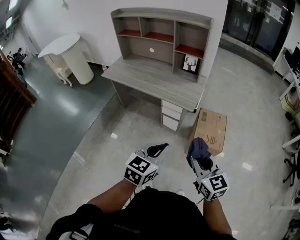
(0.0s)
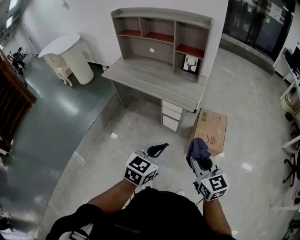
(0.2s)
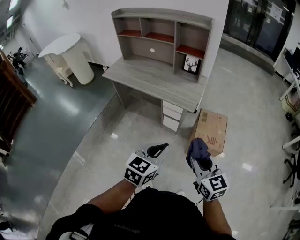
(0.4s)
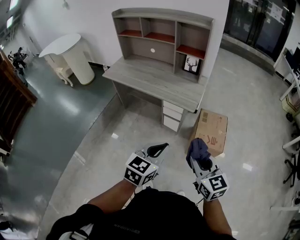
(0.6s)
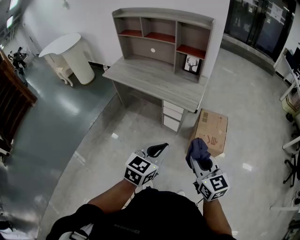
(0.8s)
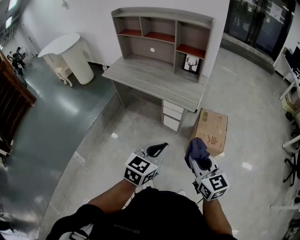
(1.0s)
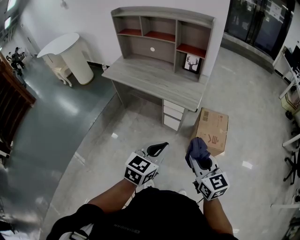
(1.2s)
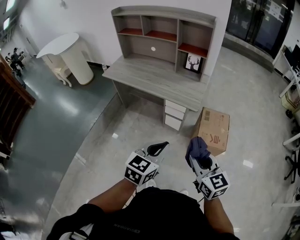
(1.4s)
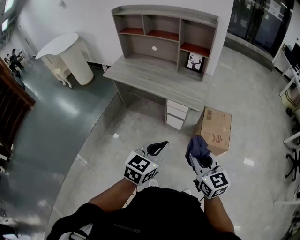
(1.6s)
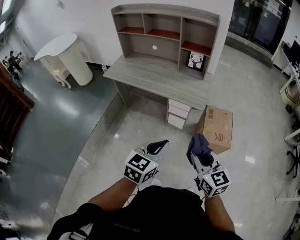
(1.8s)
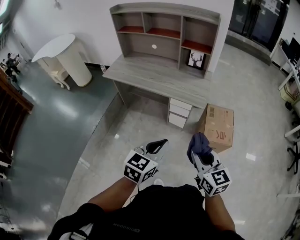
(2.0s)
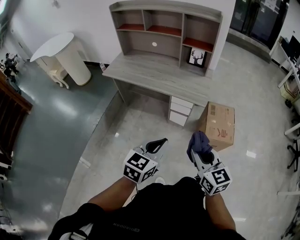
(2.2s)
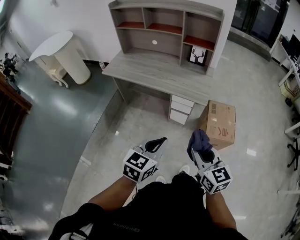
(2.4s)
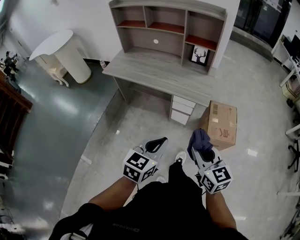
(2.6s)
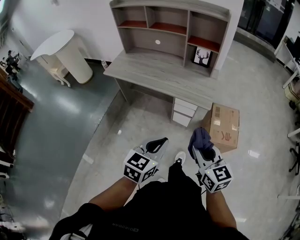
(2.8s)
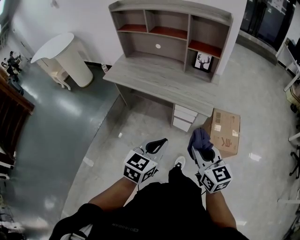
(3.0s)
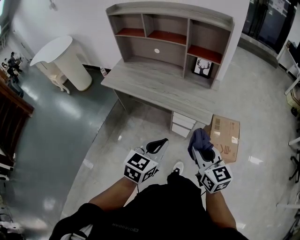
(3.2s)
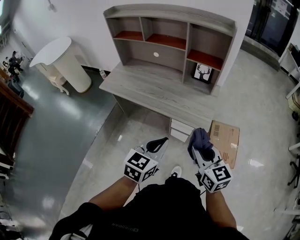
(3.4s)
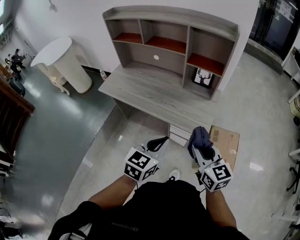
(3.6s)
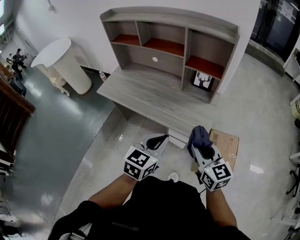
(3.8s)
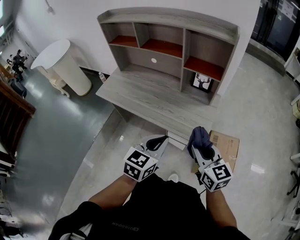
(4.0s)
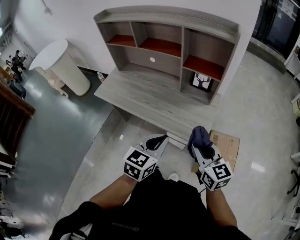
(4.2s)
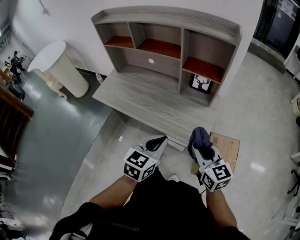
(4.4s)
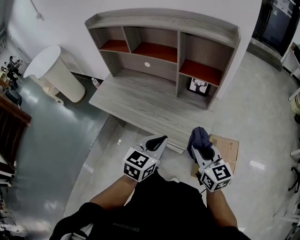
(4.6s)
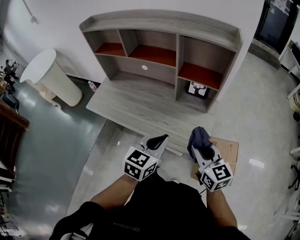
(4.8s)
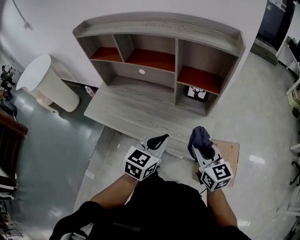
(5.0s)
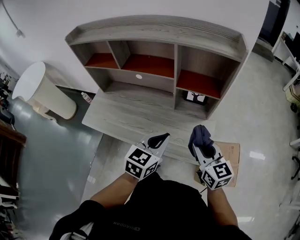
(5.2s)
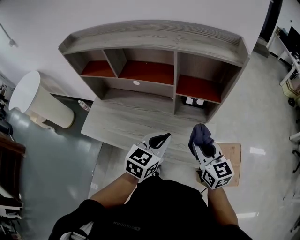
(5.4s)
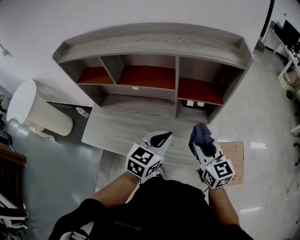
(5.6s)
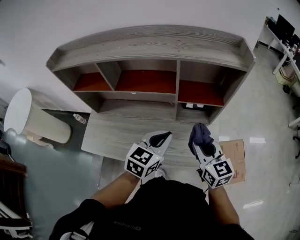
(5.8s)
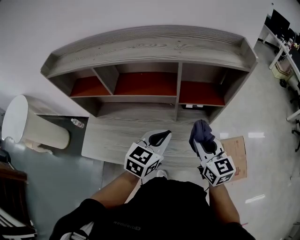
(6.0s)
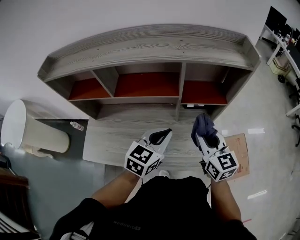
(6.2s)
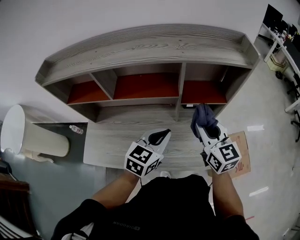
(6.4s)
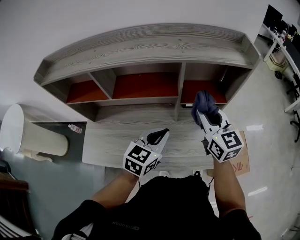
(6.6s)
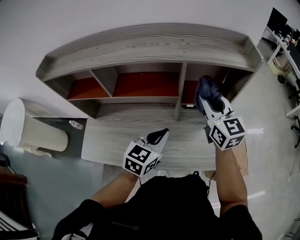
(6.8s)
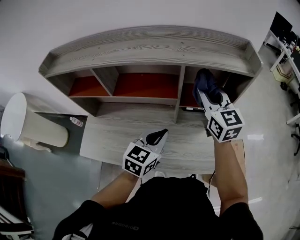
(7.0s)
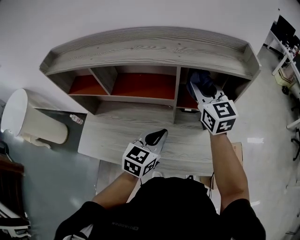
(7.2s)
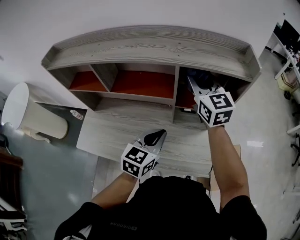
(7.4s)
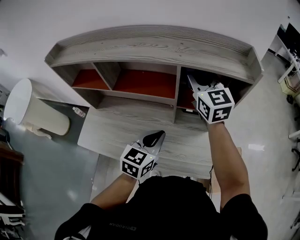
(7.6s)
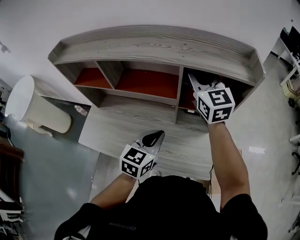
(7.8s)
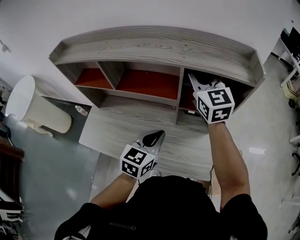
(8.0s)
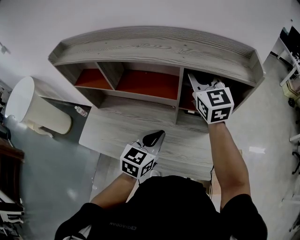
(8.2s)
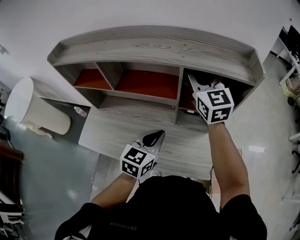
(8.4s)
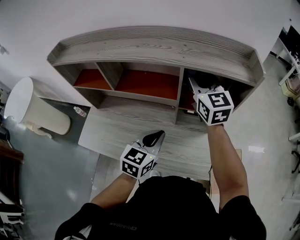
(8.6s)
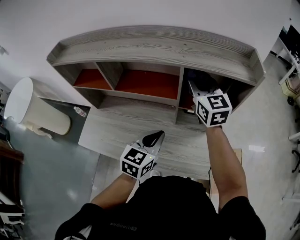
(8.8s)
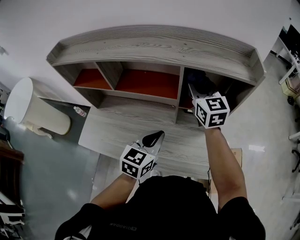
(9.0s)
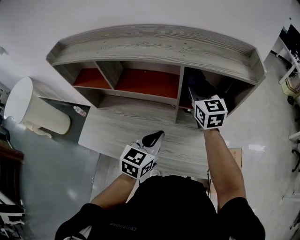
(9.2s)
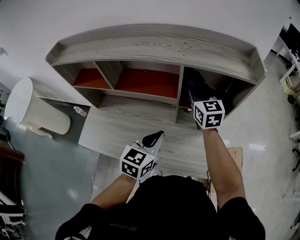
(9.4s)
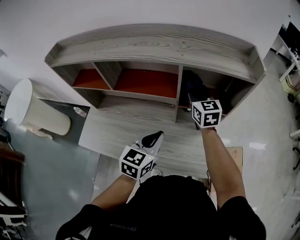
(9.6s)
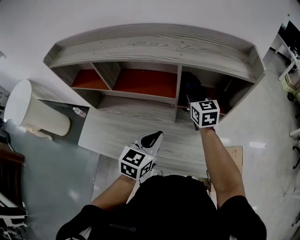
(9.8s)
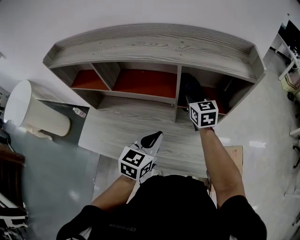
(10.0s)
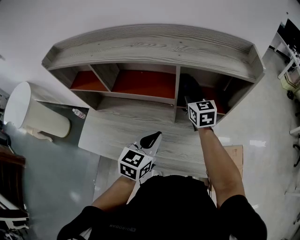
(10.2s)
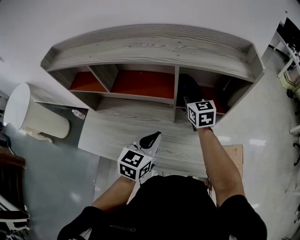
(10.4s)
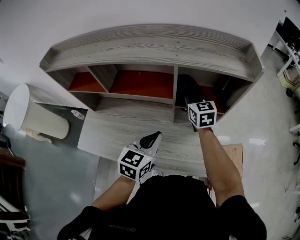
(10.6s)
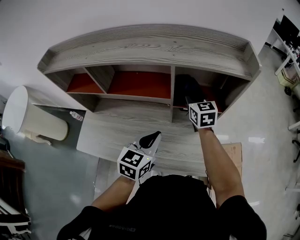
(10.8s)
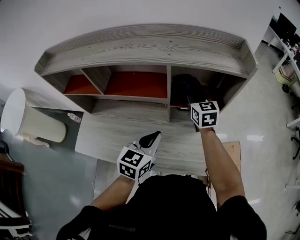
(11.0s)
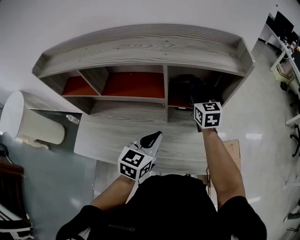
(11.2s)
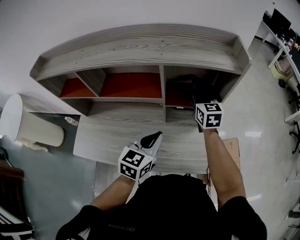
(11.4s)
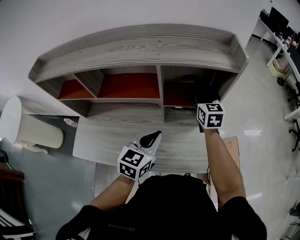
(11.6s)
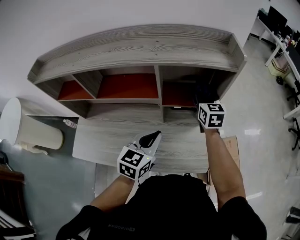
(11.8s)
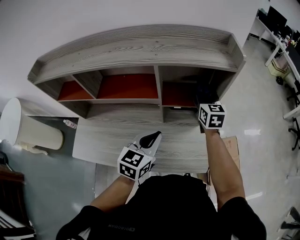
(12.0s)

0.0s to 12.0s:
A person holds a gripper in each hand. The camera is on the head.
0.0s to 1.6s: Both grippers travel together to the left, roughly 5 cm.
1.6s to 3.0s: Both grippers move forward and to the left, about 15 cm.
3.0s to 4.4s: Both grippers move forward, roughly 25 cm.
4.4s to 6.0s: The right gripper shifts about 25 cm forward and to the left, and rotates approximately 20 degrees. The left gripper is displaced forward by roughly 25 cm, and changes its angle by about 20 degrees.
6.0s to 7.6s: The right gripper shifts some 25 cm forward and upward, and changes its angle by approximately 20 degrees.
7.6s to 9.0s: There are only small adjustments of the grippers.
9.0s to 10.4s: The right gripper shifts about 10 cm downward.
10.4s to 12.0s: The right gripper is displaced to the right by approximately 15 cm.

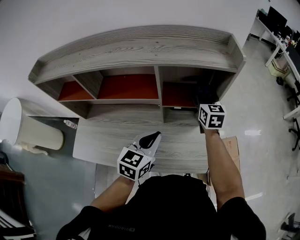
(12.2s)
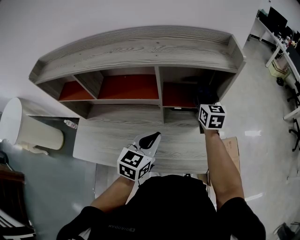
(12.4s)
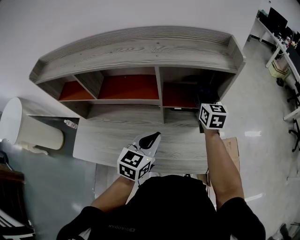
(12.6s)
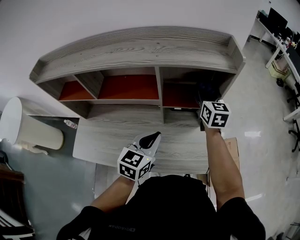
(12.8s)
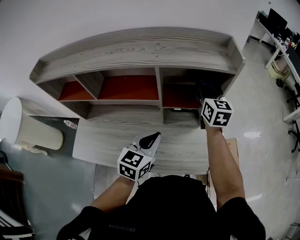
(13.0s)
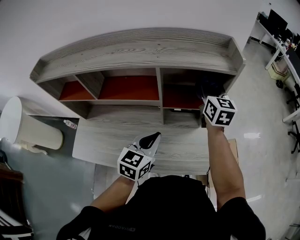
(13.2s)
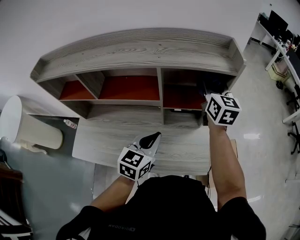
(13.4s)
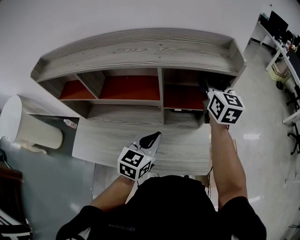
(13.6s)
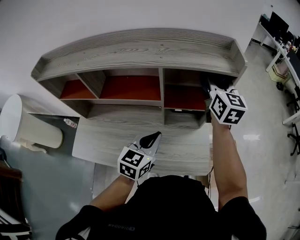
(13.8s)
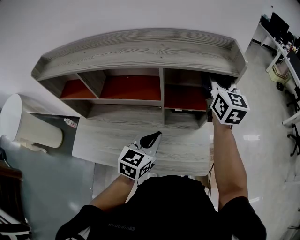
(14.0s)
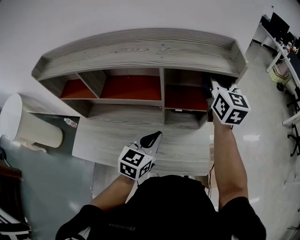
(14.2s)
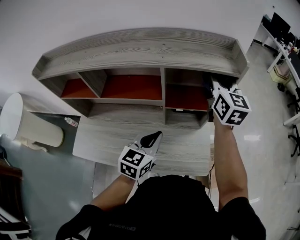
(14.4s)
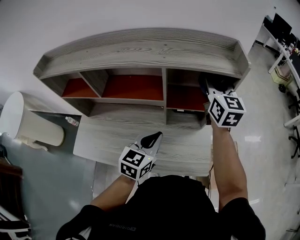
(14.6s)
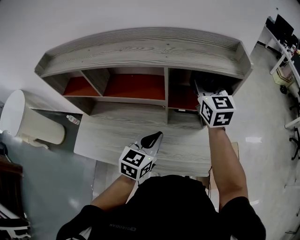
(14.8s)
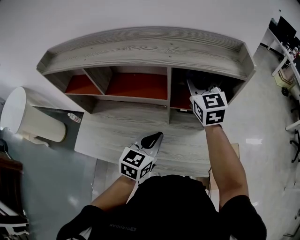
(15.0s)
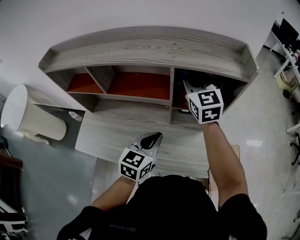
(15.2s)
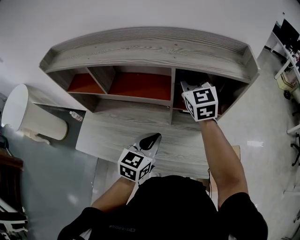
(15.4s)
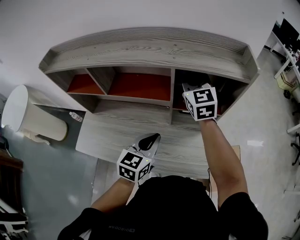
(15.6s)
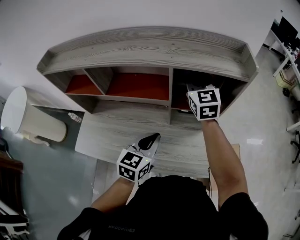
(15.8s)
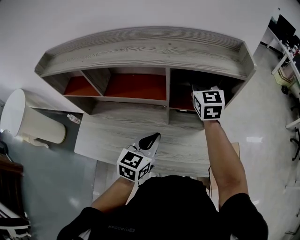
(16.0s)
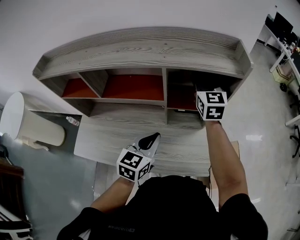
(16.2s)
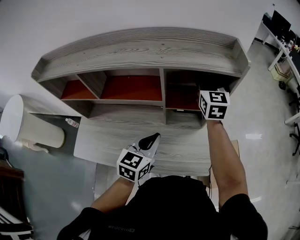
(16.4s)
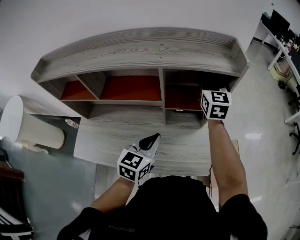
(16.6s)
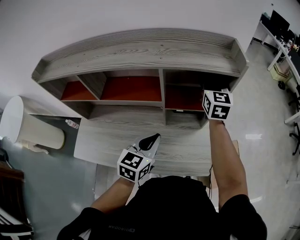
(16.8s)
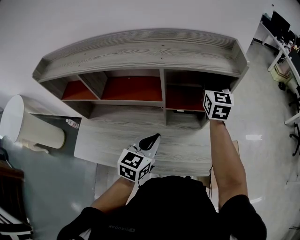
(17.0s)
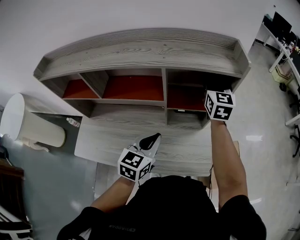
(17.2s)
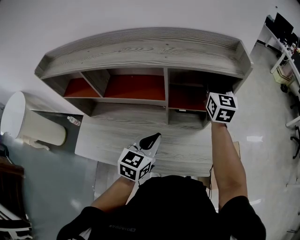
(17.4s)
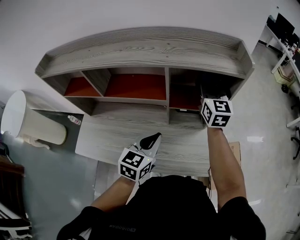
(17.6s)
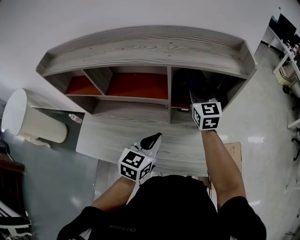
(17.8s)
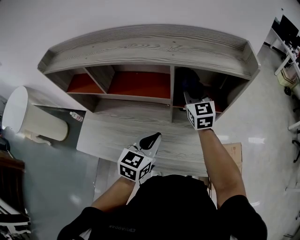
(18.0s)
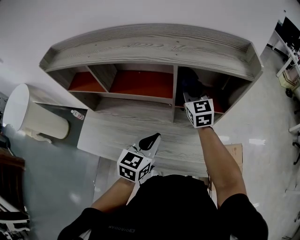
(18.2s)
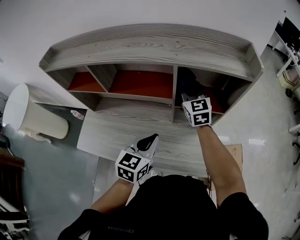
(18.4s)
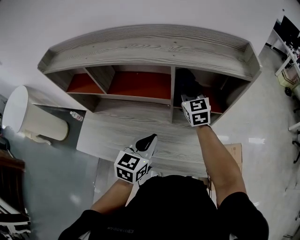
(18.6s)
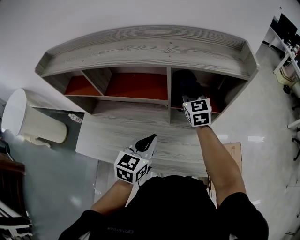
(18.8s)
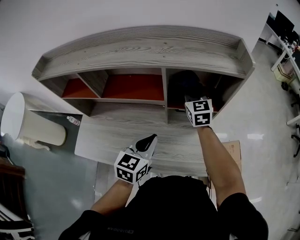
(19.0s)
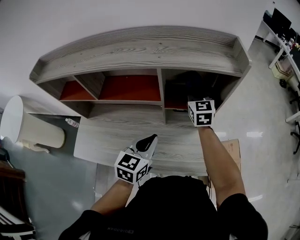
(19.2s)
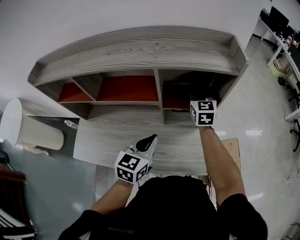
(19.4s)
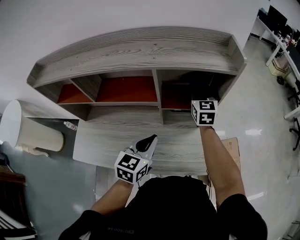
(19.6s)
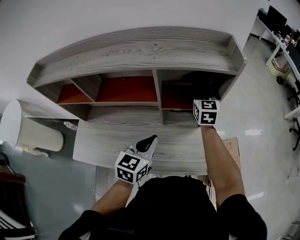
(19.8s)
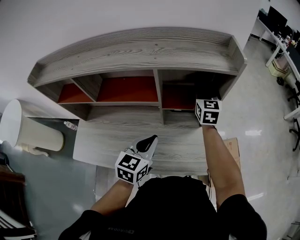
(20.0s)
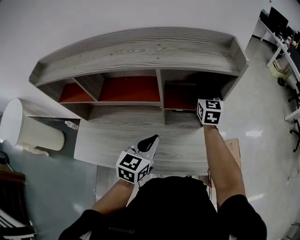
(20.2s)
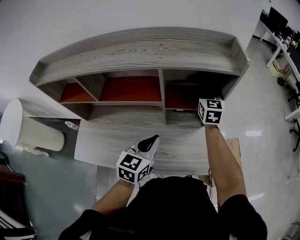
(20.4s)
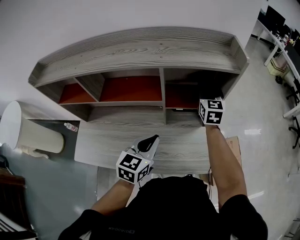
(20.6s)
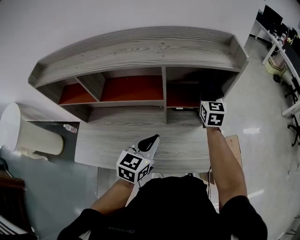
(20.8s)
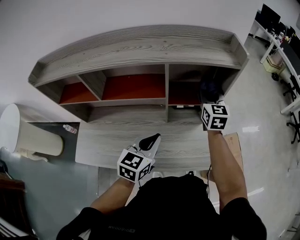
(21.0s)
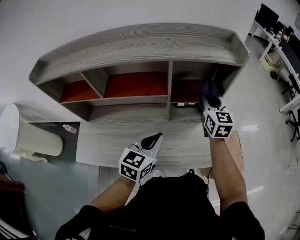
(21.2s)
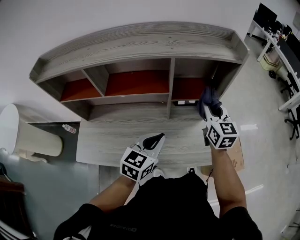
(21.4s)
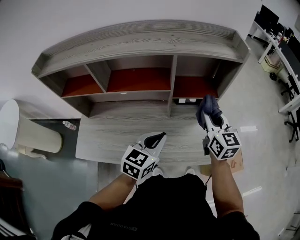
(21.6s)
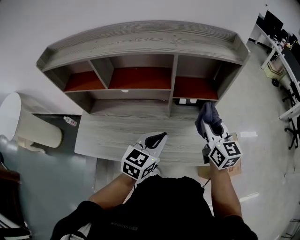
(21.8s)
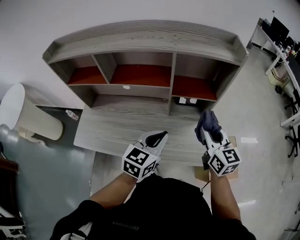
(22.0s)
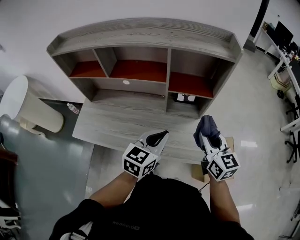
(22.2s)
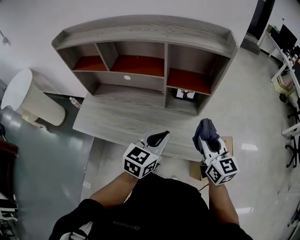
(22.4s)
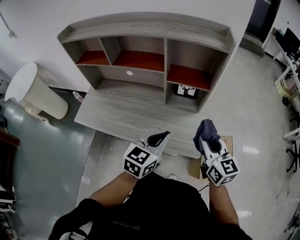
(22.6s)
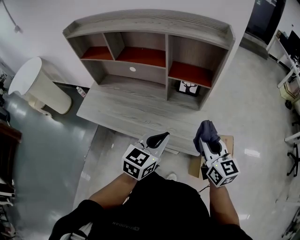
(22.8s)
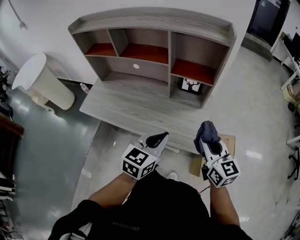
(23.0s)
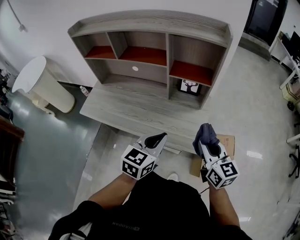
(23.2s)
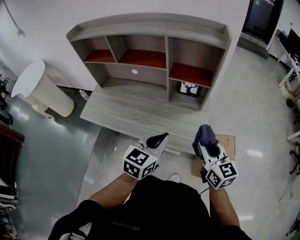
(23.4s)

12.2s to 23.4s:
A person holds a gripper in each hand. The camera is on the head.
12.2s to 13.8s: The right gripper goes approximately 15 cm upward.
13.8s to 15.4s: The right gripper heads to the left, covering roughly 15 cm, and turns by some 30 degrees.
15.4s to 17.0s: The right gripper heads to the right, covering some 15 cm, and rotates approximately 20 degrees.
17.0s to 18.6s: The right gripper travels to the left and downward by some 15 cm, and rotates about 20 degrees.
18.6s to 20.2s: The right gripper travels to the right by approximately 15 cm, and turns by some 20 degrees.
20.2s to 21.8s: The right gripper goes about 25 cm backward. Meanwhile the left gripper goes some 5 cm backward.
21.8s to 23.4s: Both grippers move backward and to the right, approximately 20 cm.

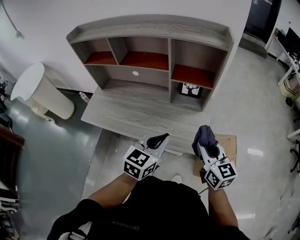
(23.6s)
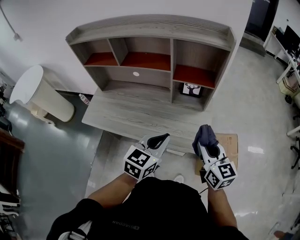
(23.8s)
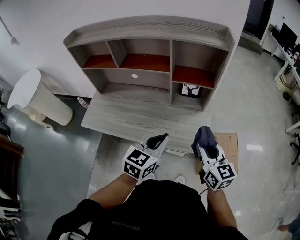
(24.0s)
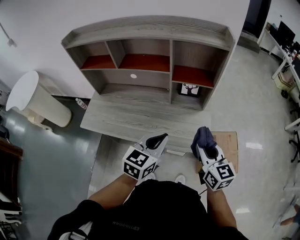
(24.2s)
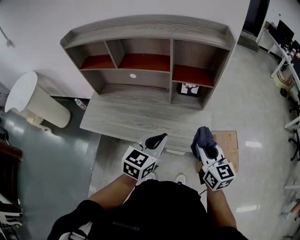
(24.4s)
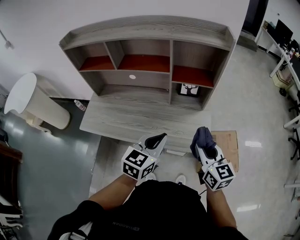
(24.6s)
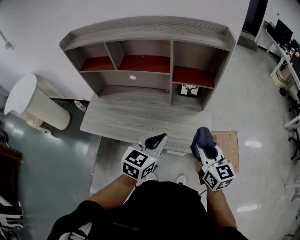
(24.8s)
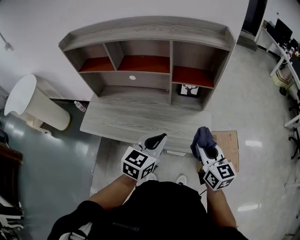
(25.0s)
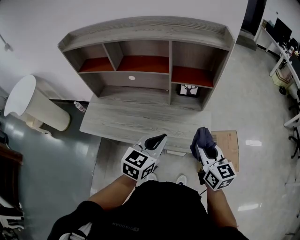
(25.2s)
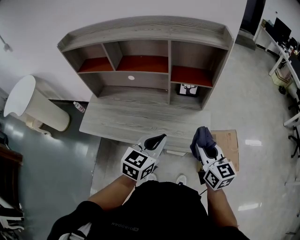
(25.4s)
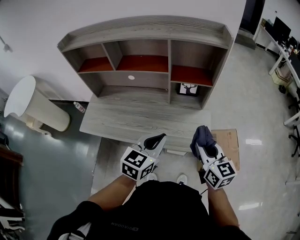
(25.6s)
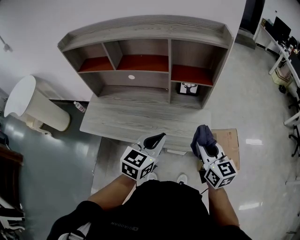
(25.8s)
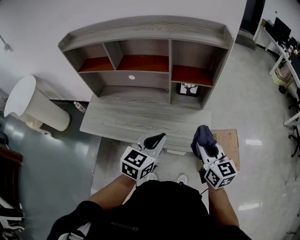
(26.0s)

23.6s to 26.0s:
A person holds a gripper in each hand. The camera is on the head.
23.6s to 24.8s: The left gripper goes some 5 cm to the left.
24.8s to 26.0s: Both grippers stay about where they are.
